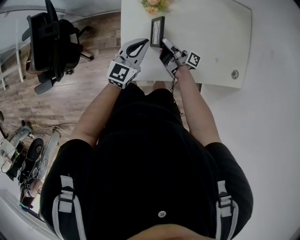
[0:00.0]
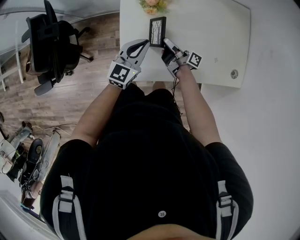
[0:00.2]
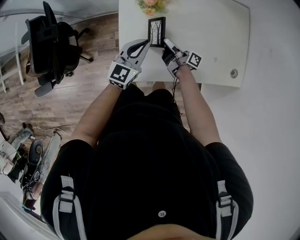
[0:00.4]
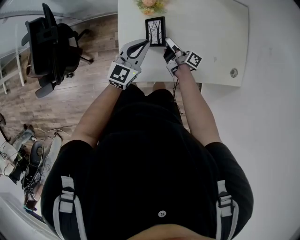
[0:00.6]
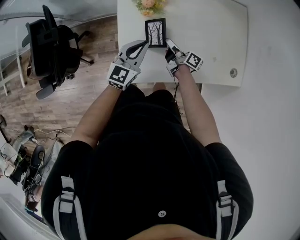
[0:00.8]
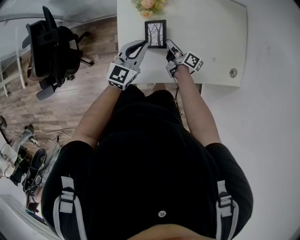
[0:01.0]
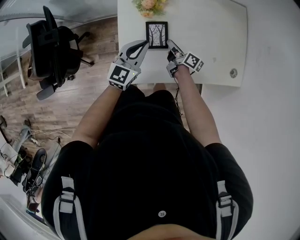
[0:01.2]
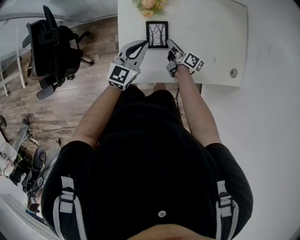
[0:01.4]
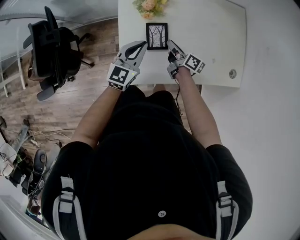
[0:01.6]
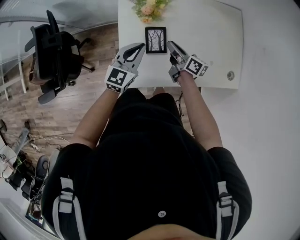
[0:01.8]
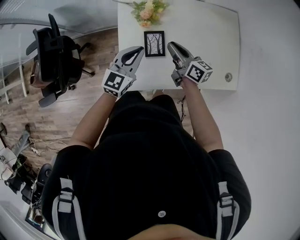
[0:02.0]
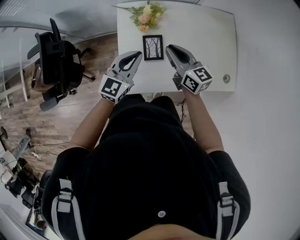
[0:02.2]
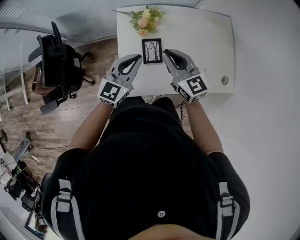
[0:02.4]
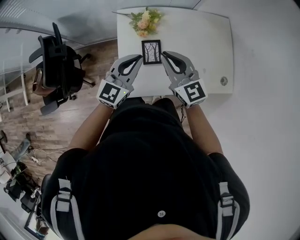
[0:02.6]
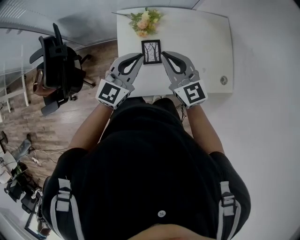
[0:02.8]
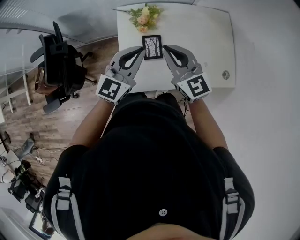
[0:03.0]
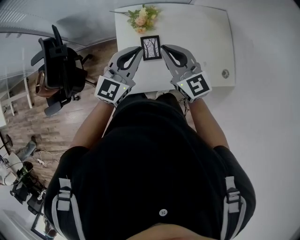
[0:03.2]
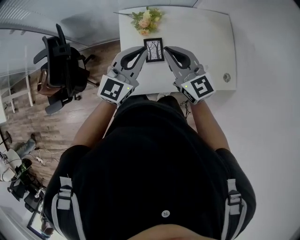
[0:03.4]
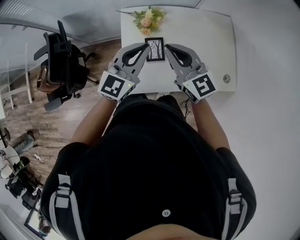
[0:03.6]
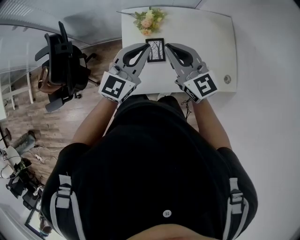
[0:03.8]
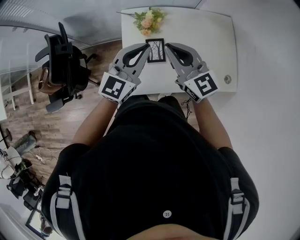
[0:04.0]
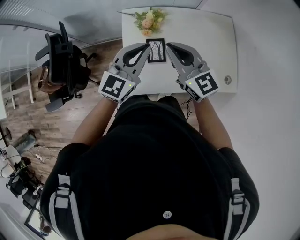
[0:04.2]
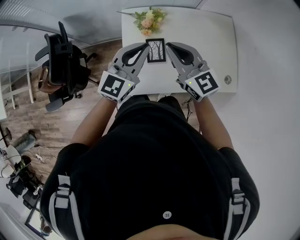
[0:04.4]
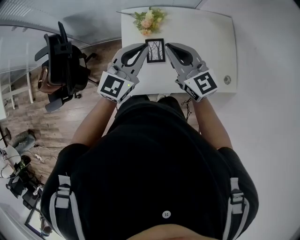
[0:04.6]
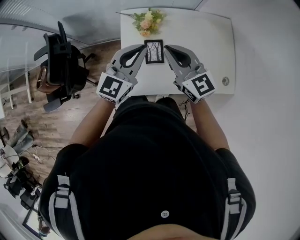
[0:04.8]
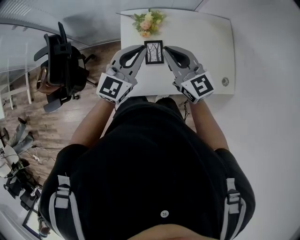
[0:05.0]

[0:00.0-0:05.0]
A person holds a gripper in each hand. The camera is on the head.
0:00.0 to 0:01.6: The right gripper travels to the right by approximately 5 cm, and turns by roughly 30 degrees.
0:01.6 to 0:03.4: The left gripper is displaced upward by about 20 cm. The right gripper moves upward, approximately 30 cm, and twists approximately 70 degrees counterclockwise, seen from behind.
0:03.4 to 0:05.0: The grippers move only a little.

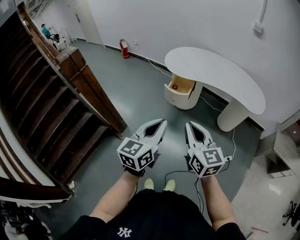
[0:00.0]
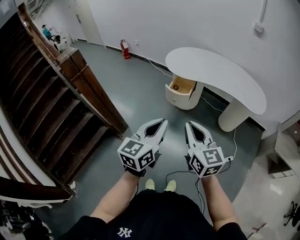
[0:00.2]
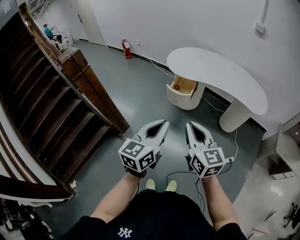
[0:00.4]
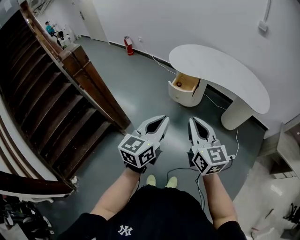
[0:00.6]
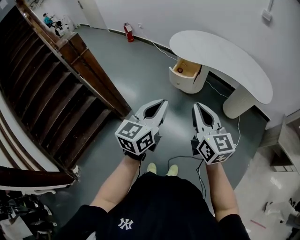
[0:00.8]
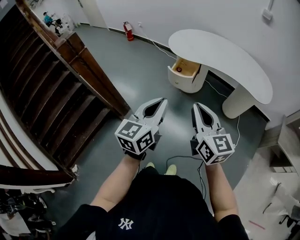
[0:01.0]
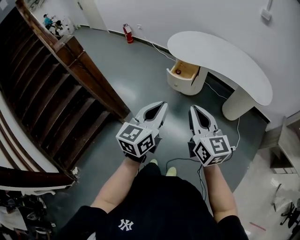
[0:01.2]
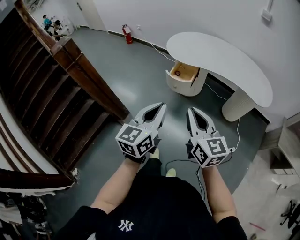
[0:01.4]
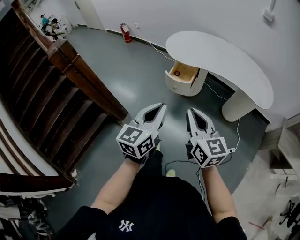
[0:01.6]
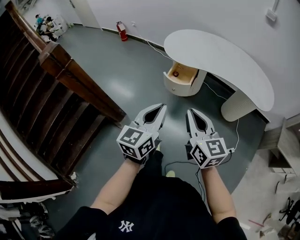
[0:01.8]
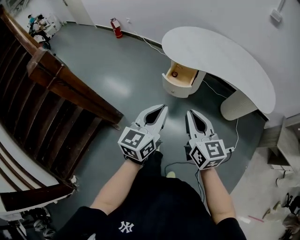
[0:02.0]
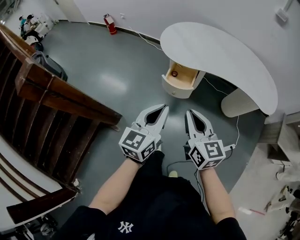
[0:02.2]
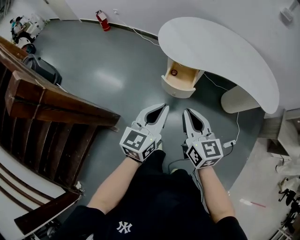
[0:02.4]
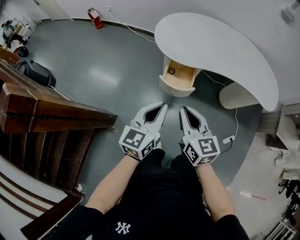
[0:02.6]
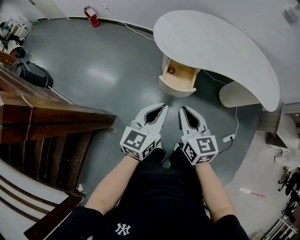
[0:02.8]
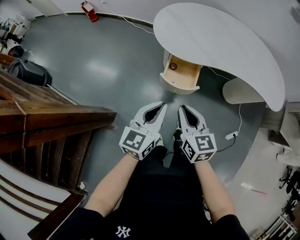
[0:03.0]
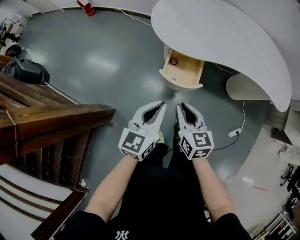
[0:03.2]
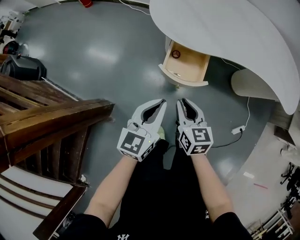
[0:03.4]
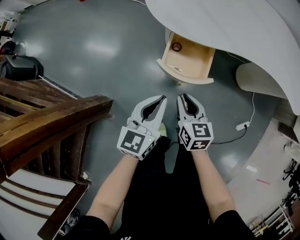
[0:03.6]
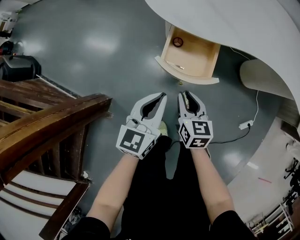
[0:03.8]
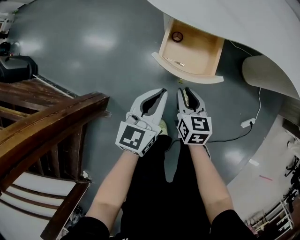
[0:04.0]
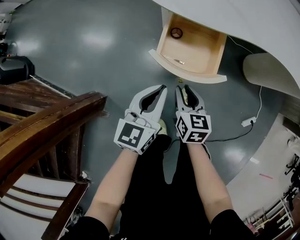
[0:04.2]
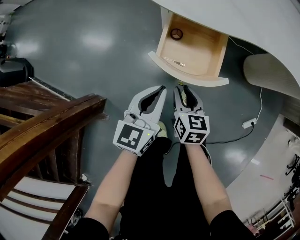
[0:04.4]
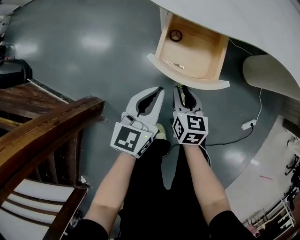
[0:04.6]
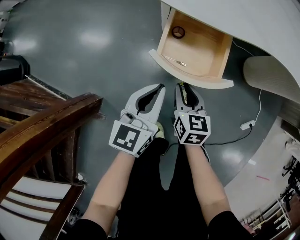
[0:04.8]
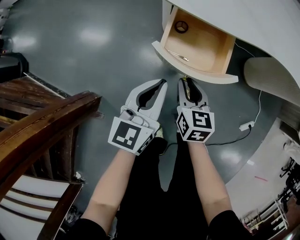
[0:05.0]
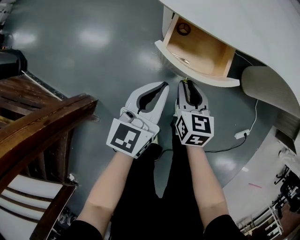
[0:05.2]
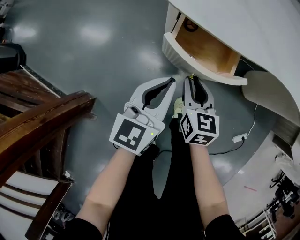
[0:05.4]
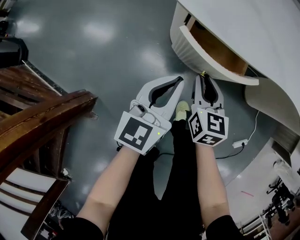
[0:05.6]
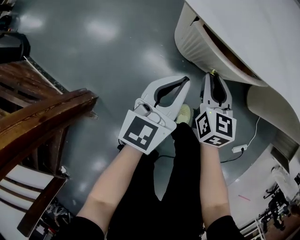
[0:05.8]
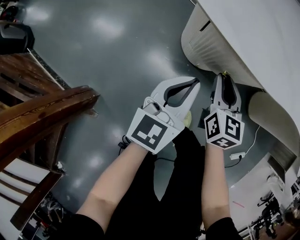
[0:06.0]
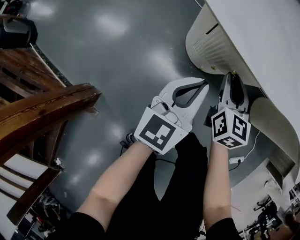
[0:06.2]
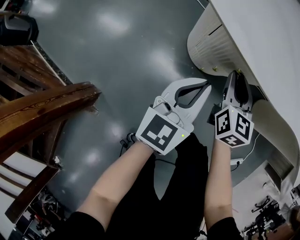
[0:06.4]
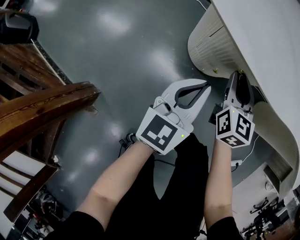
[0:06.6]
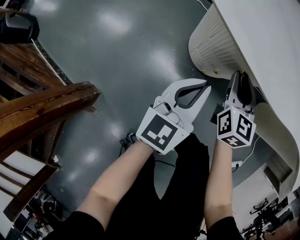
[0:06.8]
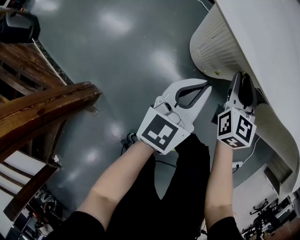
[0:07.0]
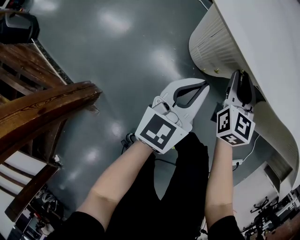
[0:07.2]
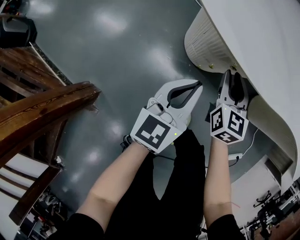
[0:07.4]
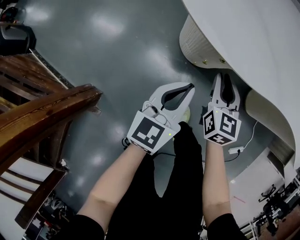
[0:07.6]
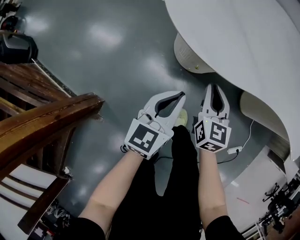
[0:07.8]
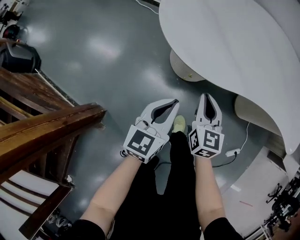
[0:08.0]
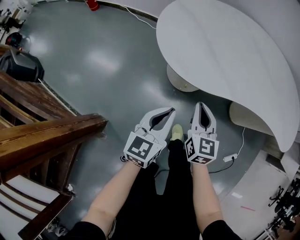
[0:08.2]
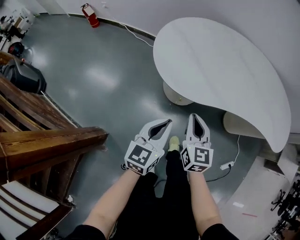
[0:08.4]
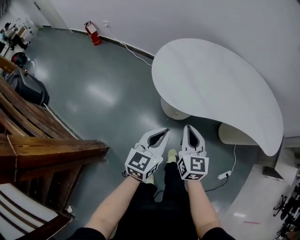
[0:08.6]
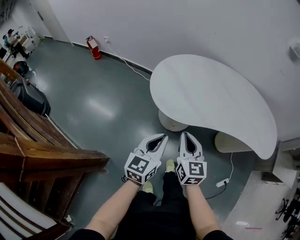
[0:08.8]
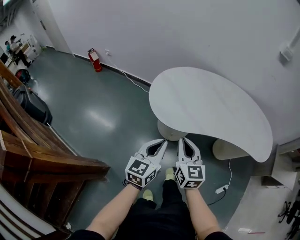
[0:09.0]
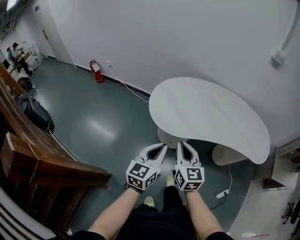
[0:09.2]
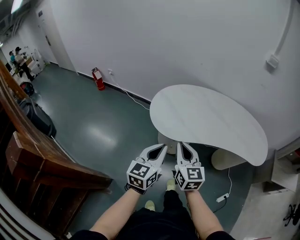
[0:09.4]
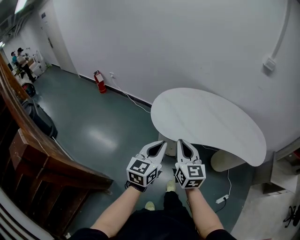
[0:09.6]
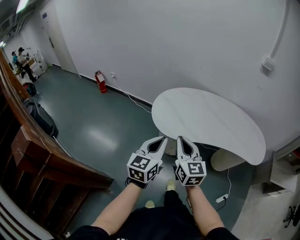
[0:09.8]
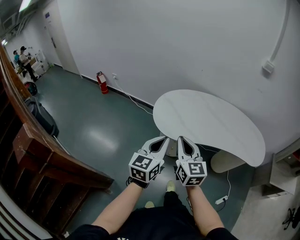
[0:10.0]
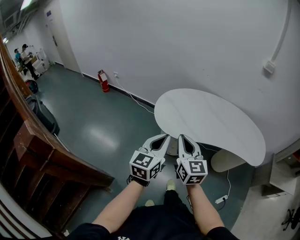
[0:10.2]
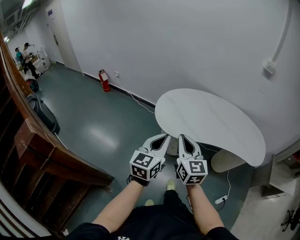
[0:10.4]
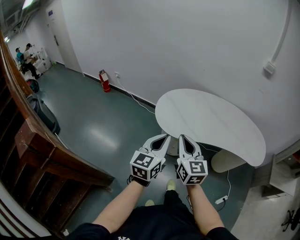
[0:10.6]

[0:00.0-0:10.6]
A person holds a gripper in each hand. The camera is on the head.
0:00.0 to 0:01.6: The grippers both shift forward by approximately 5 cm.
0:01.6 to 0:03.0: Both grippers move forward, downward and to the left, approximately 35 cm. The right gripper rotates roughly 20 degrees.
0:03.0 to 0:04.6: The two grippers go about 35 cm downward. The right gripper opens its fingers.
0:04.6 to 0:06.0: The grippers both shift forward by roughly 15 cm.
0:06.0 to 0:07.6: The grippers stay close to where they were, moving slightly.
0:07.6 to 0:09.0: Both grippers move upward, some 35 cm.
0:09.0 to 0:10.6: The two grippers go about 15 cm upward and backward.

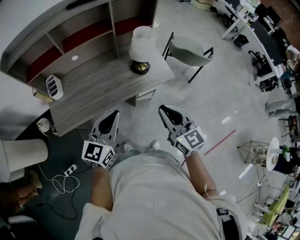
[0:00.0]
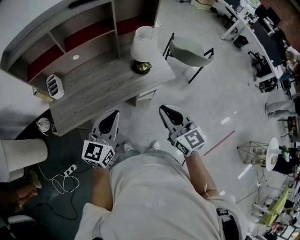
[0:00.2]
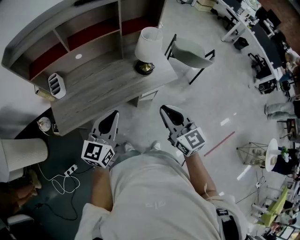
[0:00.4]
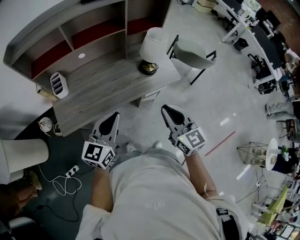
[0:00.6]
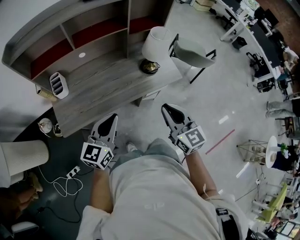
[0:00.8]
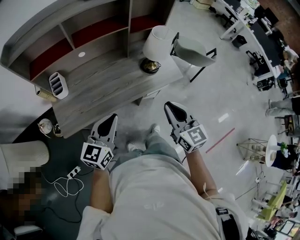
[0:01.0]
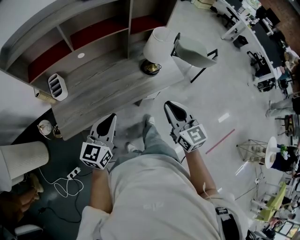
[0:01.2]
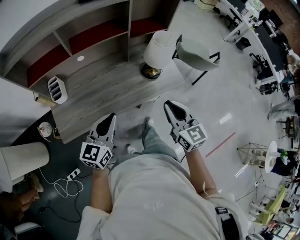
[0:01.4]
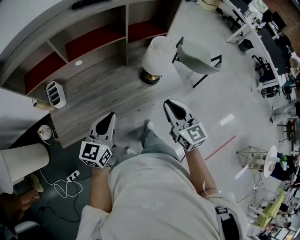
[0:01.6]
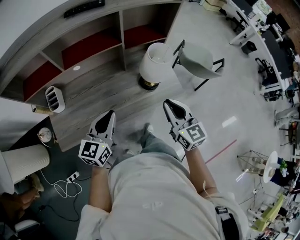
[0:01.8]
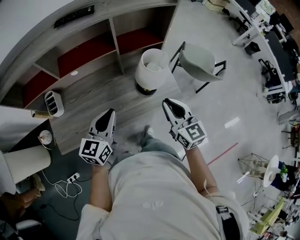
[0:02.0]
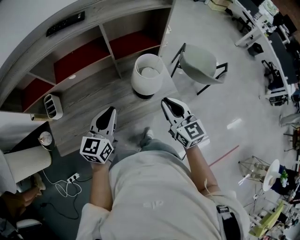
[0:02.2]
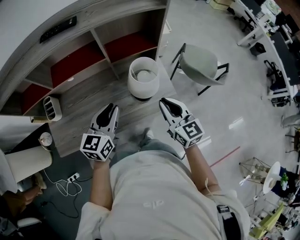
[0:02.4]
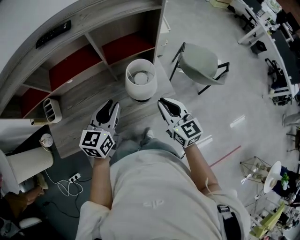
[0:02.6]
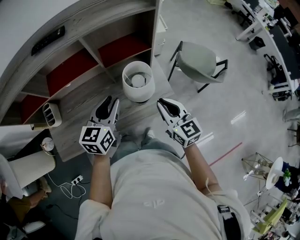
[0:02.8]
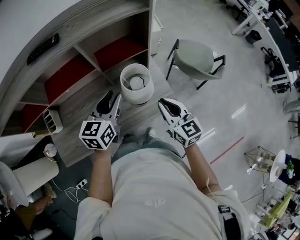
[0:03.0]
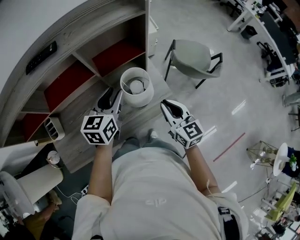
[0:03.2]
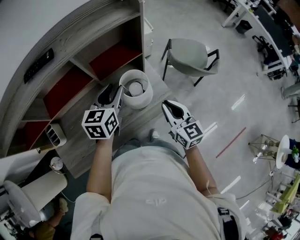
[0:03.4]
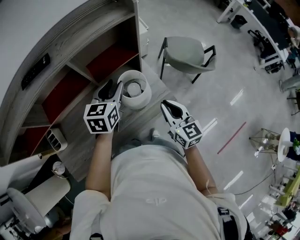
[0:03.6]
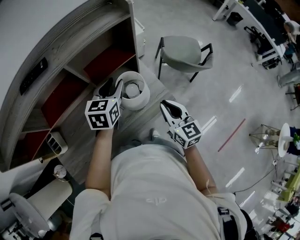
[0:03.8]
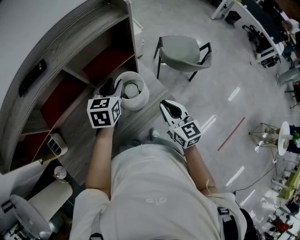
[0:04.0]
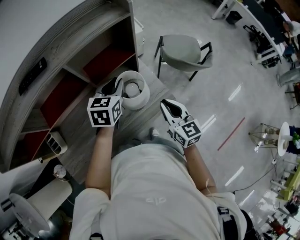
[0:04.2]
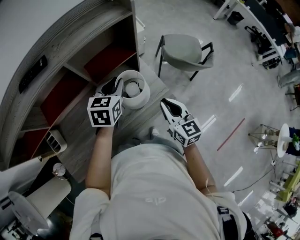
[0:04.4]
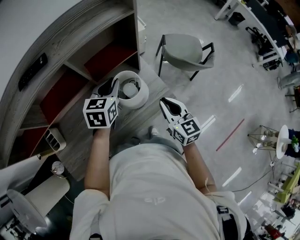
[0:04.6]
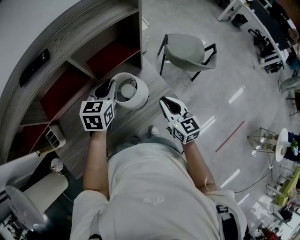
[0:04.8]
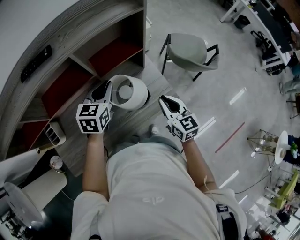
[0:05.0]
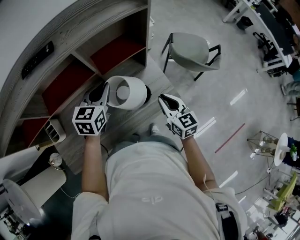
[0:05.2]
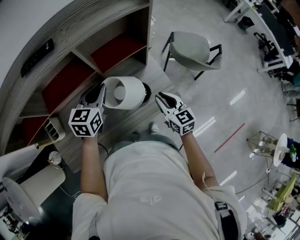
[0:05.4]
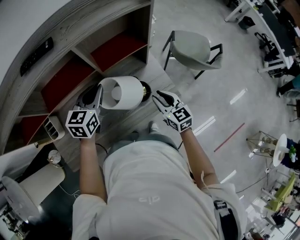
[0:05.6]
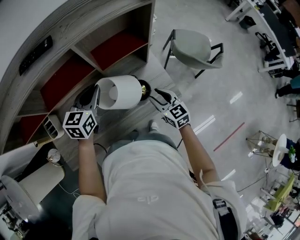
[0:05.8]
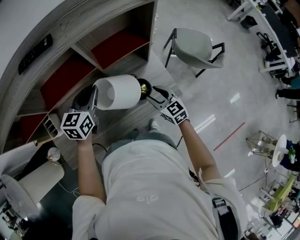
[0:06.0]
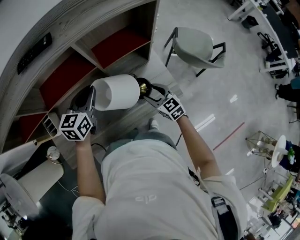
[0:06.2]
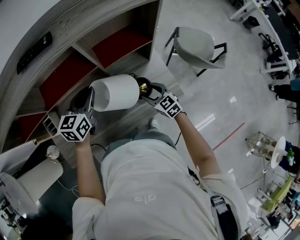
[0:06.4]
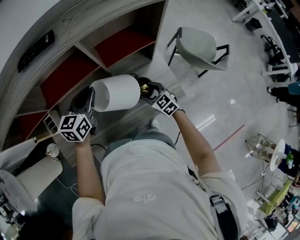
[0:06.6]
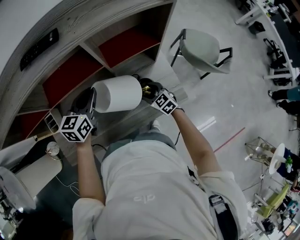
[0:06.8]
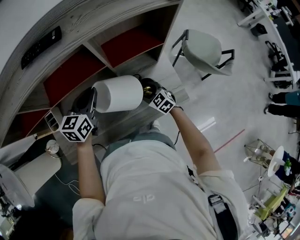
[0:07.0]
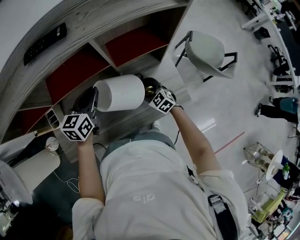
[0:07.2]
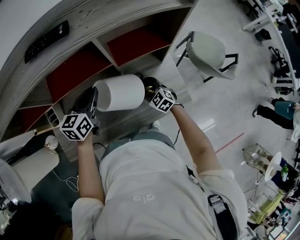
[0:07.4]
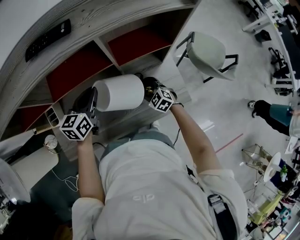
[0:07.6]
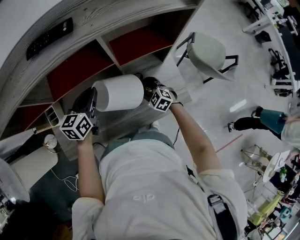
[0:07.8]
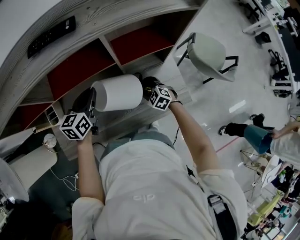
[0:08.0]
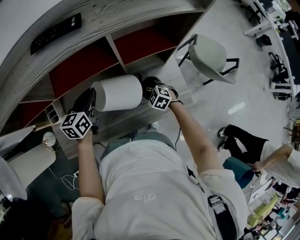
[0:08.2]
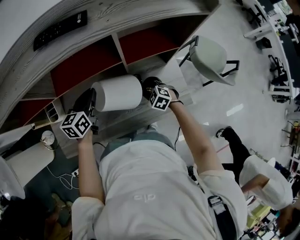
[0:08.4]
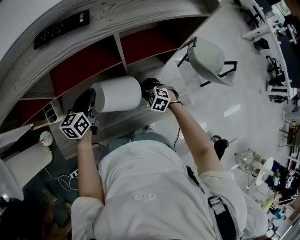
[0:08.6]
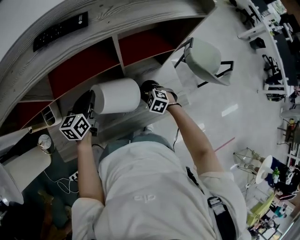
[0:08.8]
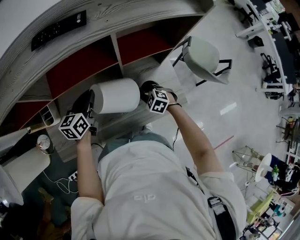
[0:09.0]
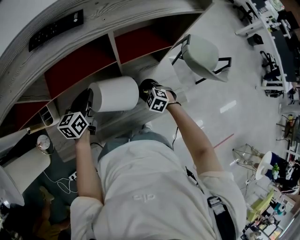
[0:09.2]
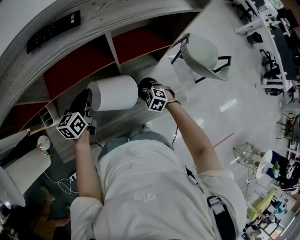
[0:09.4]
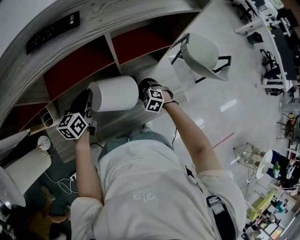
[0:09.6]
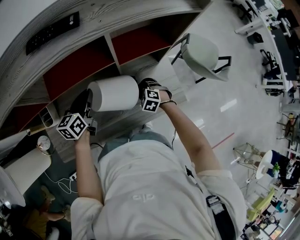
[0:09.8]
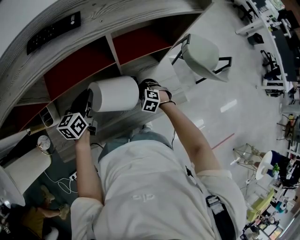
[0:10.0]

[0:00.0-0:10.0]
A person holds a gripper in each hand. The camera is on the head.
0:00.0 to 0:01.4: The left gripper travels to the left and forward by about 10 cm; the right gripper moves forward and to the left, some 10 cm.
0:01.4 to 0:02.8: Both grippers travel together forward and to the right, roughly 30 cm. The left gripper opens its fingers.
0:02.8 to 0:04.2: The left gripper shifts roughly 15 cm forward and to the right.
0:04.2 to 0:05.8: The right gripper is displaced downward and to the left by about 15 cm, turns by about 20 degrees, and opens up. Meanwhile the left gripper goes some 15 cm to the left.
0:05.8 to 0:07.2: The right gripper travels downward, to the left and forward by some 15 cm, and turns by roughly 30 degrees. The left gripper goes some 5 cm to the left.
0:07.2 to 0:08.6: The left gripper is displaced to the left by some 5 cm, while the right gripper changes its angle by roughly 30 degrees, and closes its fingers.
0:08.6 to 0:10.0: There are only small adjustments of the grippers.
